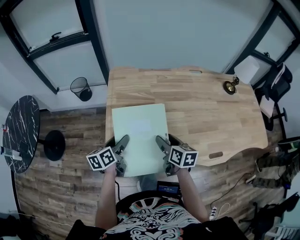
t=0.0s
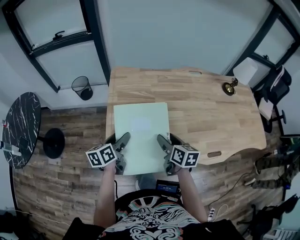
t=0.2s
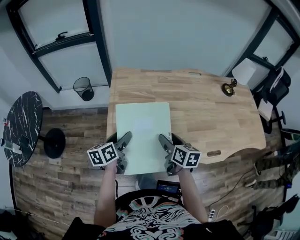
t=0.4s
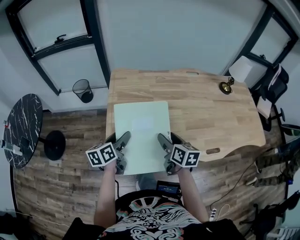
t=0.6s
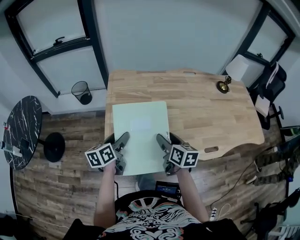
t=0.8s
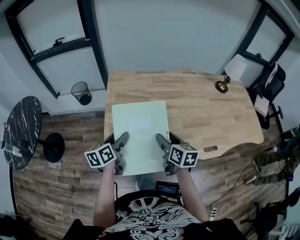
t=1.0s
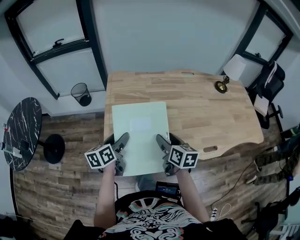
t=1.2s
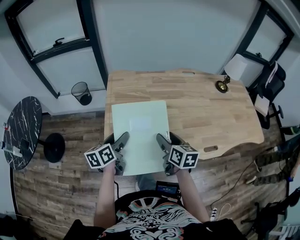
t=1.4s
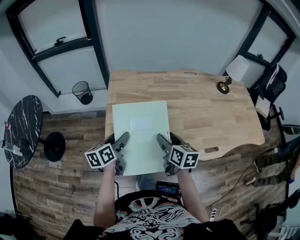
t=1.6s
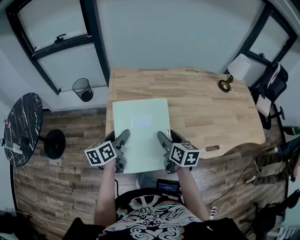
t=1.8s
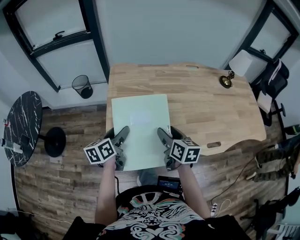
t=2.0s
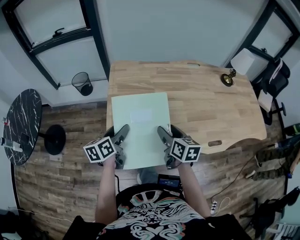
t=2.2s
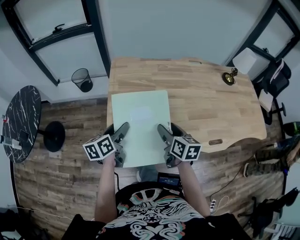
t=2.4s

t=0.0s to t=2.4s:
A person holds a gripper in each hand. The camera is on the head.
t=0.0s to t=1.2s: The left gripper goes approximately 5 cm upward, while the right gripper goes about 5 cm backward.
t=1.2s to t=2.4s: The grippers stay close to where they were, moving slightly.

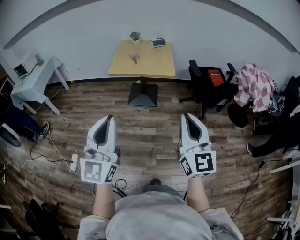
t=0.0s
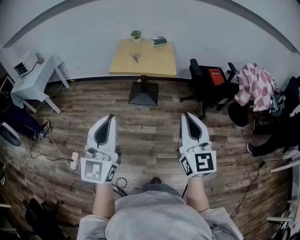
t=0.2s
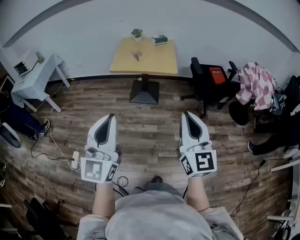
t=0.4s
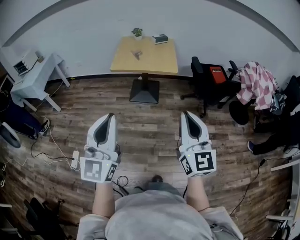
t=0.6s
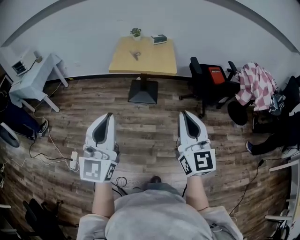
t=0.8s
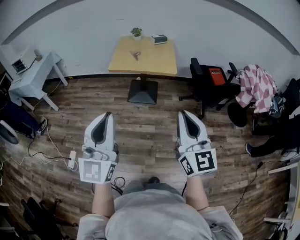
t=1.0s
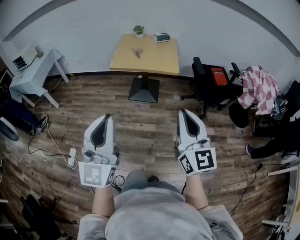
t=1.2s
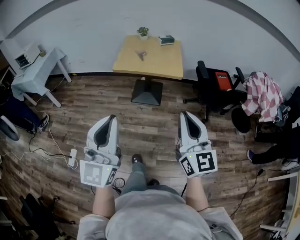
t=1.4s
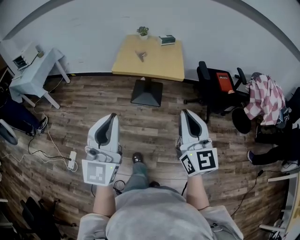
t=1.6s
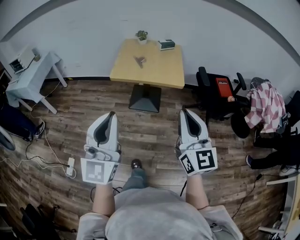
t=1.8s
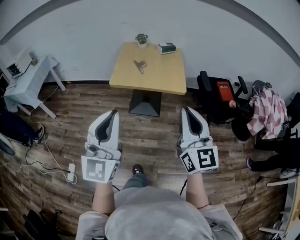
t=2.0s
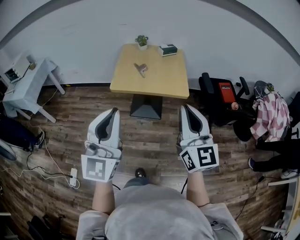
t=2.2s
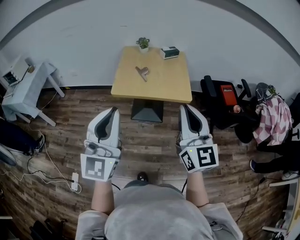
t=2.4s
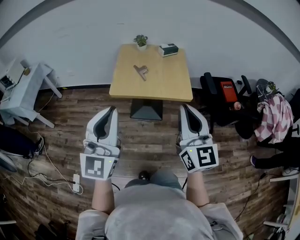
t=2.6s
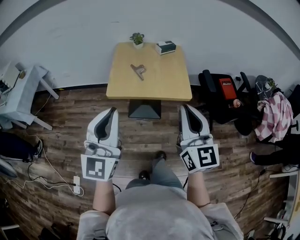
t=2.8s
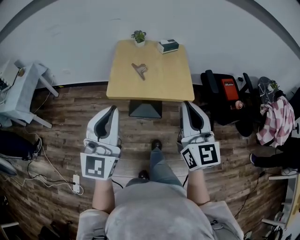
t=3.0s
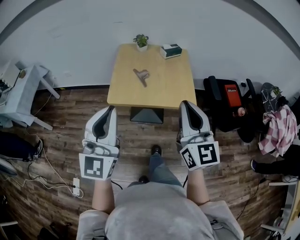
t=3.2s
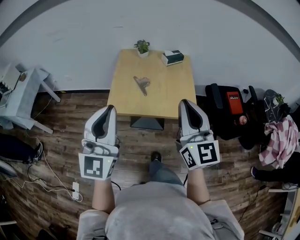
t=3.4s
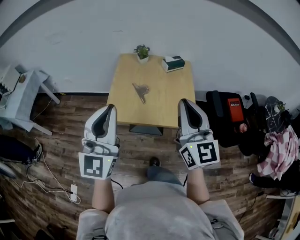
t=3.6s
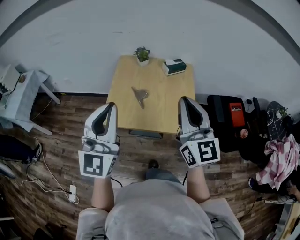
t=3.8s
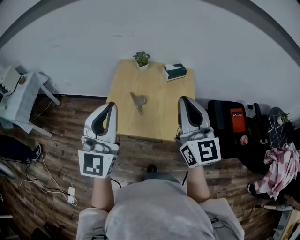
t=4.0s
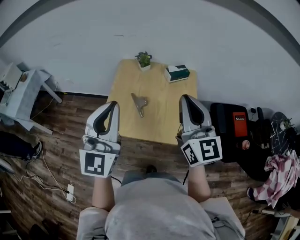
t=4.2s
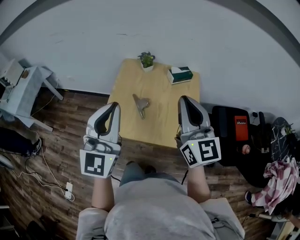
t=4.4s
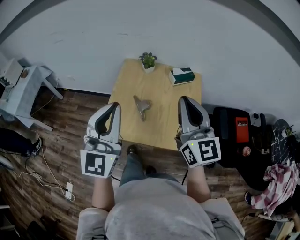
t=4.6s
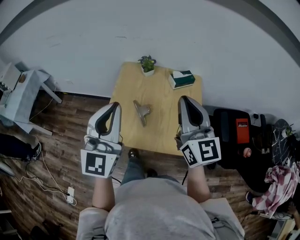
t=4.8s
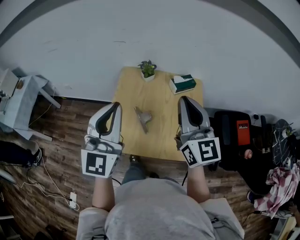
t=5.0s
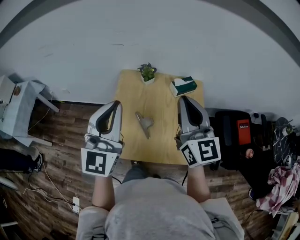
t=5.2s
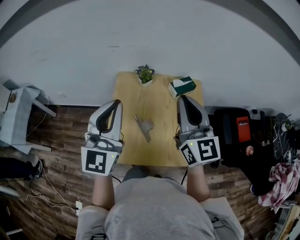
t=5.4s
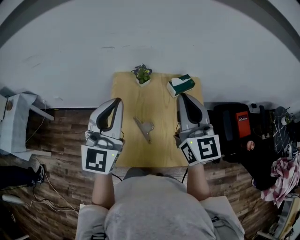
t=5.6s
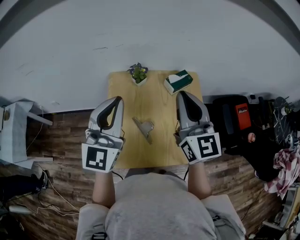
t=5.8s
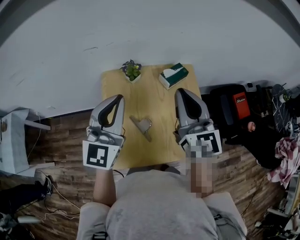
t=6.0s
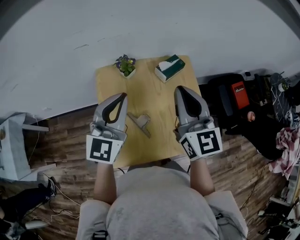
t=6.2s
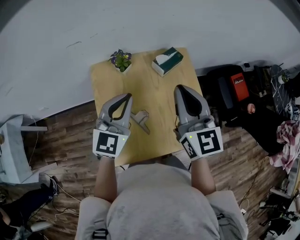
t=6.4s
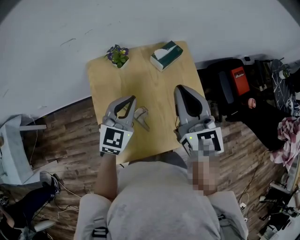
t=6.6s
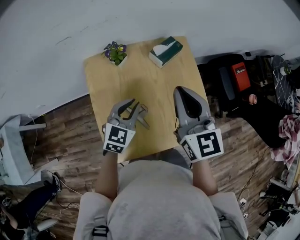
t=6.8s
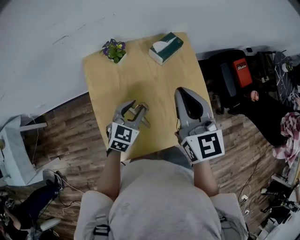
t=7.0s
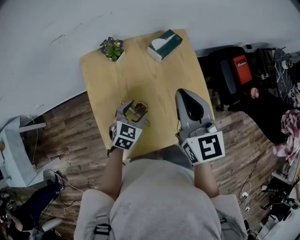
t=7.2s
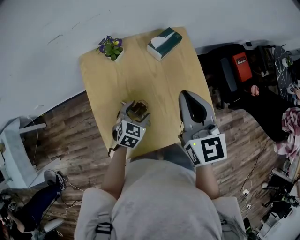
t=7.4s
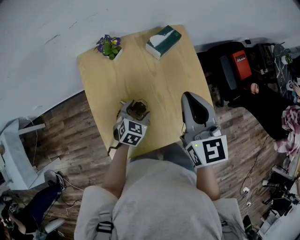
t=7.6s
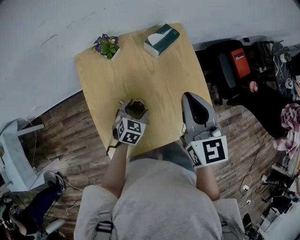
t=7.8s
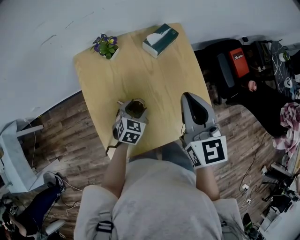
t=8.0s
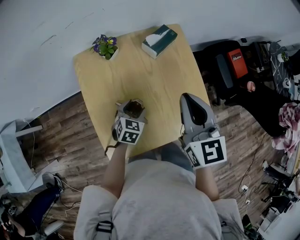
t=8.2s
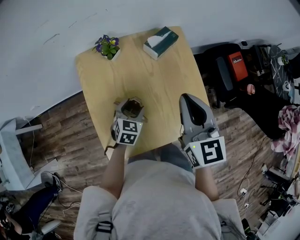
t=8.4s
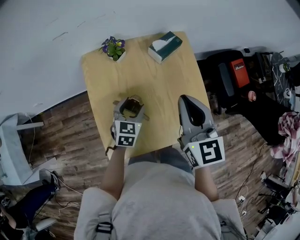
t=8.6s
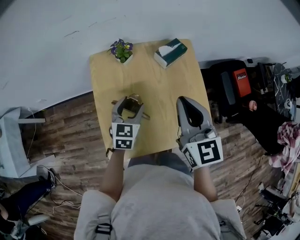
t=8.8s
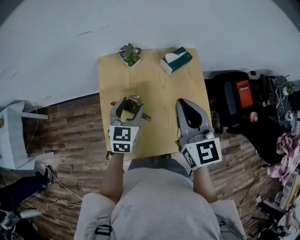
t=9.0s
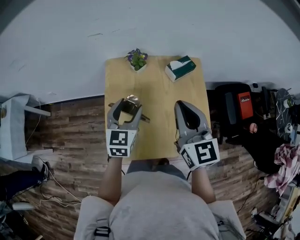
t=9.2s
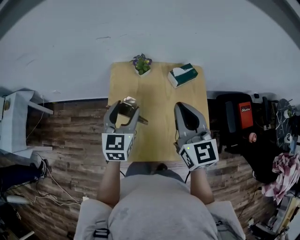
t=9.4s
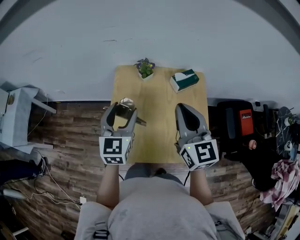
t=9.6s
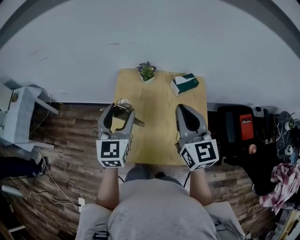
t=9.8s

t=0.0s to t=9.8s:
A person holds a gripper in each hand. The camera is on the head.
t=0.0s to t=1.4s: The right gripper shifts some 5 cm forward.
t=1.4s to t=2.8s: The grippers both shift forward by approximately 30 cm.
t=2.8s to t=4.2s: Both grippers move forward, some 30 cm.
t=4.2s to t=5.6s: The grippers both shift forward by about 20 cm.
t=5.6s to t=7.0s: The right gripper goes about 10 cm downward, and rotates roughly 20 degrees; the left gripper travels downward by about 30 cm, angles its fingers downward, by some 50 degrees, and opens.
t=7.0s to t=8.4s: The left gripper travels downward by roughly 10 cm, and opens up.
t=8.4s to t=9.8s: The right gripper goes some 10 cm upward, and changes its angle by about 20 degrees. The left gripper heads upward, covering some 30 cm, and tilts its fingers some 30 degrees upward.

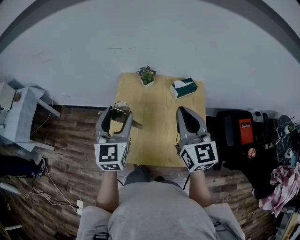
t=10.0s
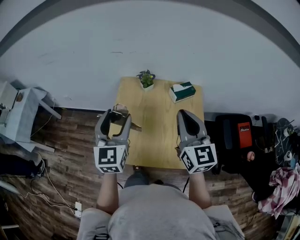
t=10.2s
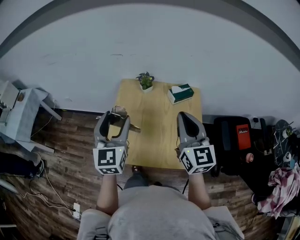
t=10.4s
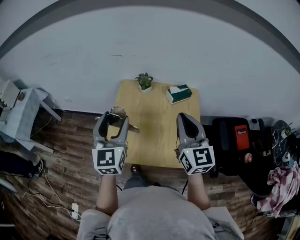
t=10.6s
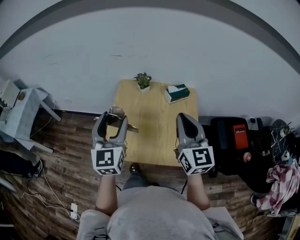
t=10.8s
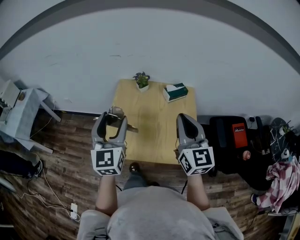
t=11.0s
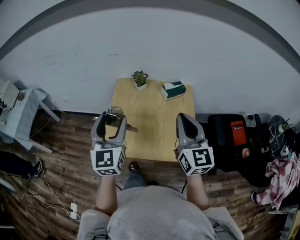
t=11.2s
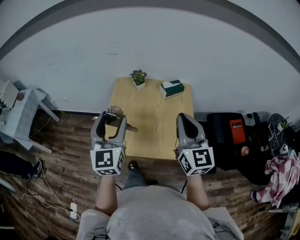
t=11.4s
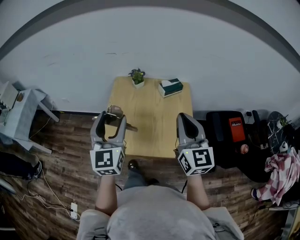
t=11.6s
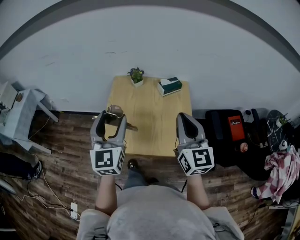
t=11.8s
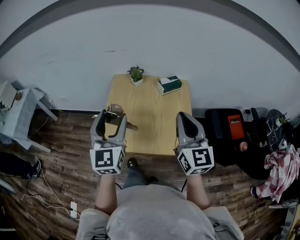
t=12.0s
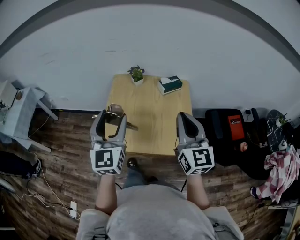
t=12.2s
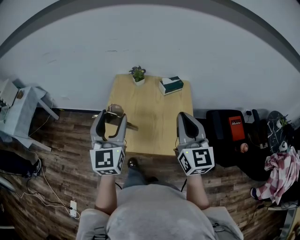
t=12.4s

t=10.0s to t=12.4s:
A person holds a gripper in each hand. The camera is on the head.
t=10.0s to t=11.2s: Both grippers move backward, about 10 cm.
t=11.2s to t=12.4s: The grippers make only small movements.

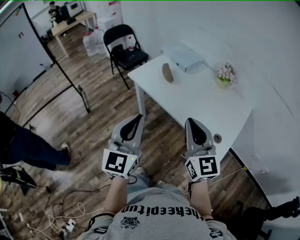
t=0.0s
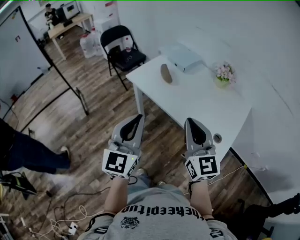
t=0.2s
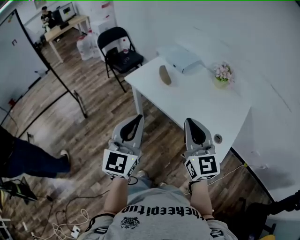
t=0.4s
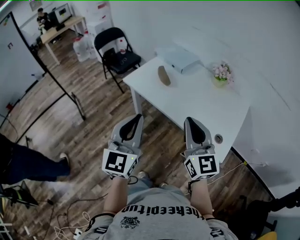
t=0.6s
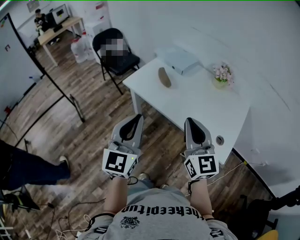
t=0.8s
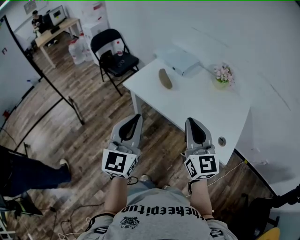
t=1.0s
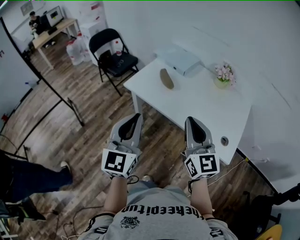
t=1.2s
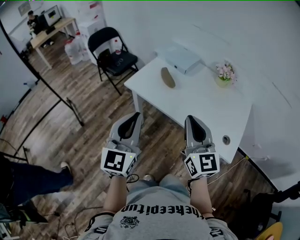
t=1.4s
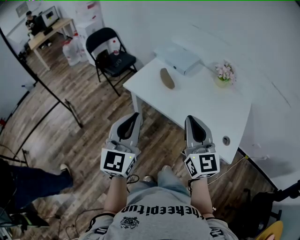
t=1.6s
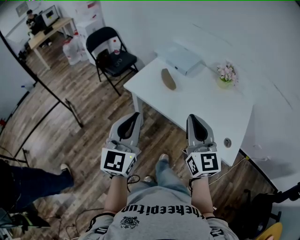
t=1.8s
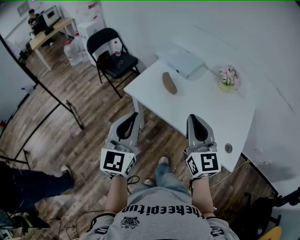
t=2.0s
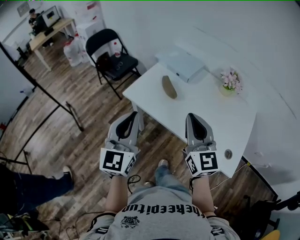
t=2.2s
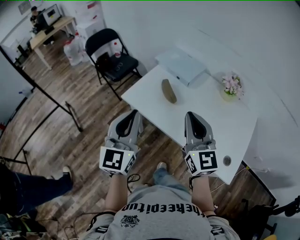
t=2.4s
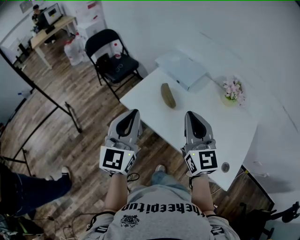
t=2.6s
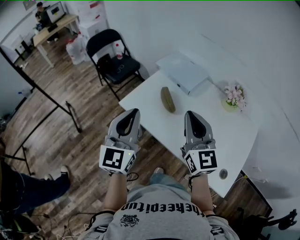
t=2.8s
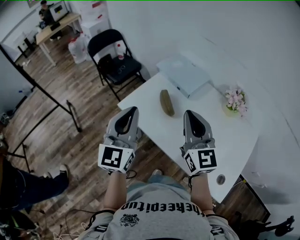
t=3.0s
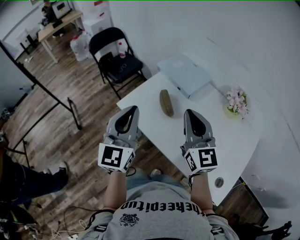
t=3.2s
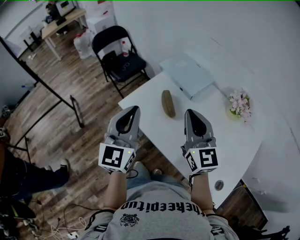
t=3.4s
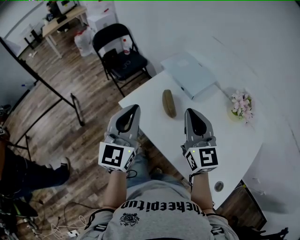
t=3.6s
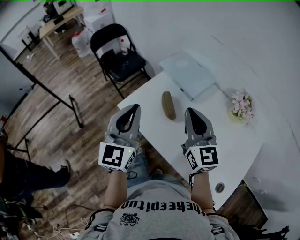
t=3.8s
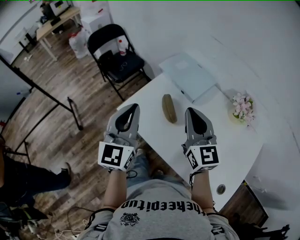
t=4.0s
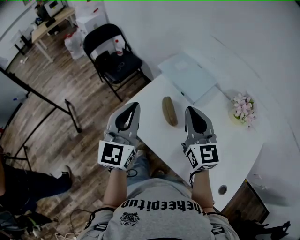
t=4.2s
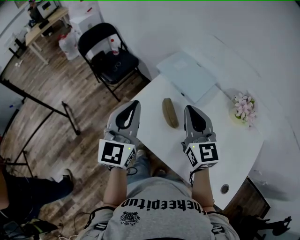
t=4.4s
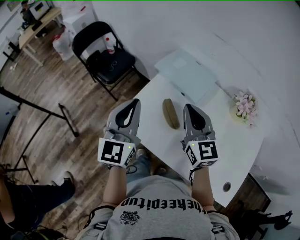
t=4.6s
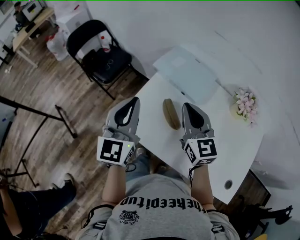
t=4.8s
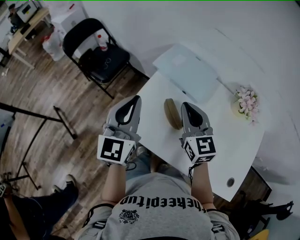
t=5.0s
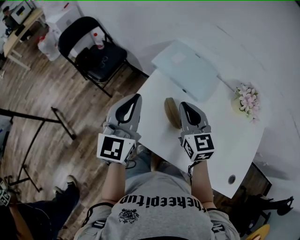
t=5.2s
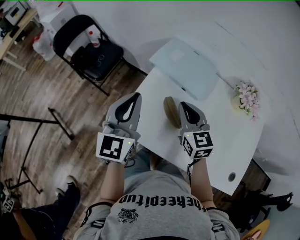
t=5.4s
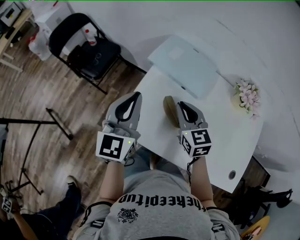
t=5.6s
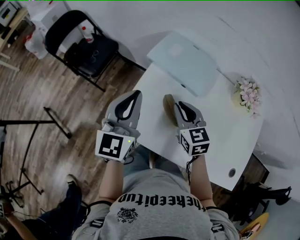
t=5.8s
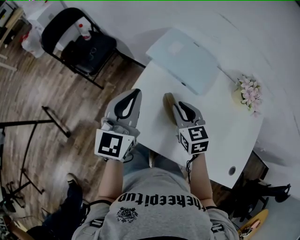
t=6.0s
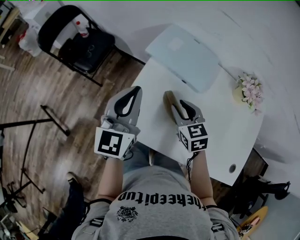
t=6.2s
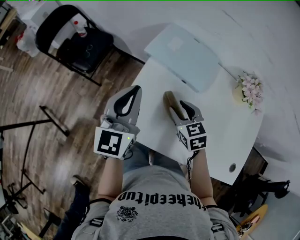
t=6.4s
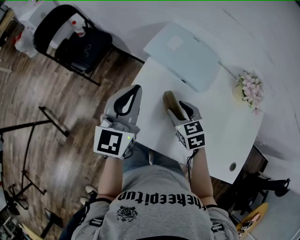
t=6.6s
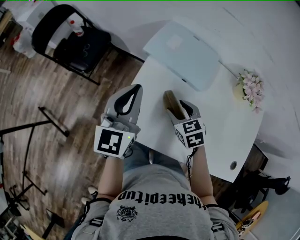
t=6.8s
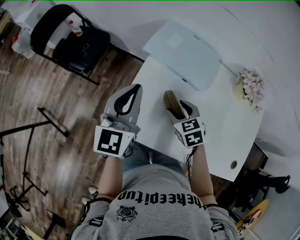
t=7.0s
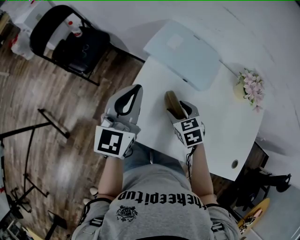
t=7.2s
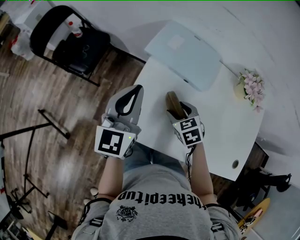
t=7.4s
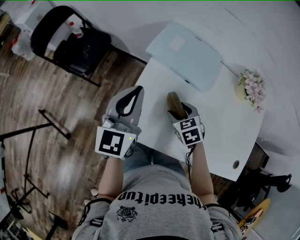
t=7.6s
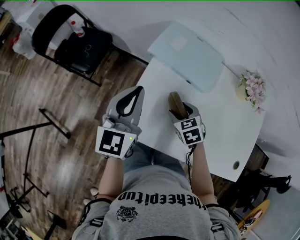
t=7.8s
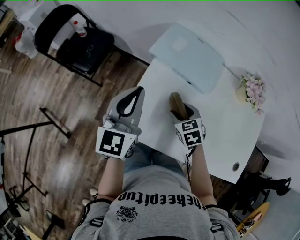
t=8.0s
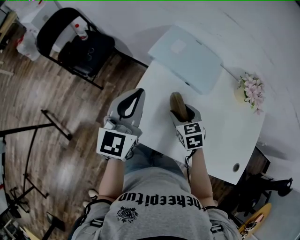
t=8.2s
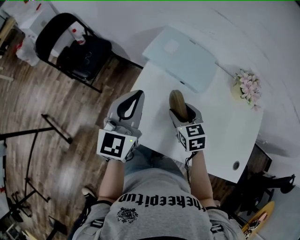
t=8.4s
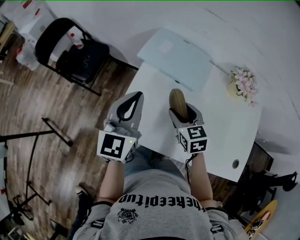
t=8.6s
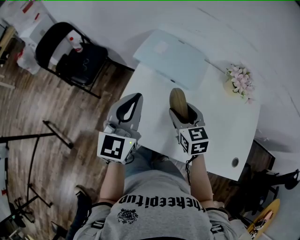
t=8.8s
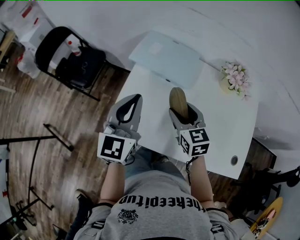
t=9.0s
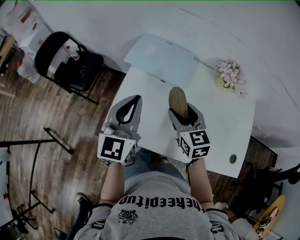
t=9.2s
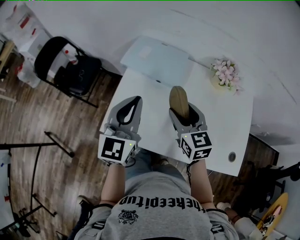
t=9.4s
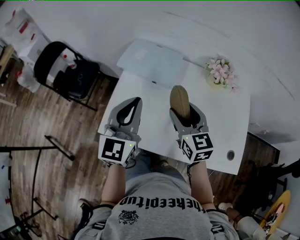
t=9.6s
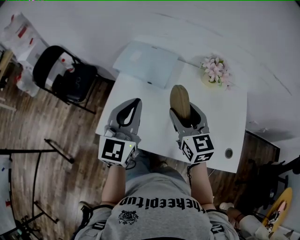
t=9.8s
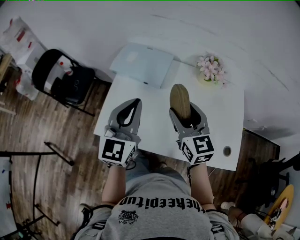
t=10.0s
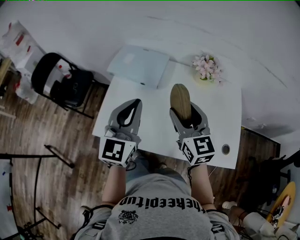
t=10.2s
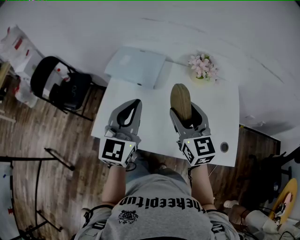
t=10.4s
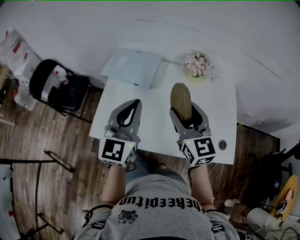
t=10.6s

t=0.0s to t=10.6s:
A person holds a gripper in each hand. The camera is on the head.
t=0.0s to t=1.6s: The left gripper is displaced forward and to the left by approximately 15 cm; the right gripper shifts roughly 10 cm to the left and forward.
t=1.6s to t=3.0s: Both grippers travel together forward, approximately 20 cm.
t=3.0s to t=4.6s: Both grippers travel together forward, about 15 cm.
t=4.6s to t=6.0s: The left gripper travels forward and downward by about 10 cm; the right gripper heads downward, covering about 15 cm, and turns by some 30 degrees.
t=6.0s to t=7.6s: The right gripper heads downward, covering approximately 10 cm, changes its angle by approximately 20 degrees, and opens up.
t=7.6s to t=9.0s: The right gripper goes roughly 15 cm upward and to the right, and rotates roughly 30 degrees; the left gripper shifts approximately 10 cm to the right and backward.
t=9.0s to t=10.6s: The left gripper is displaced to the right and backward by some 15 cm. The right gripper heads upward, to the right and backward, covering approximately 20 cm, and turns by about 20 degrees.
